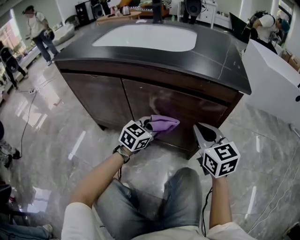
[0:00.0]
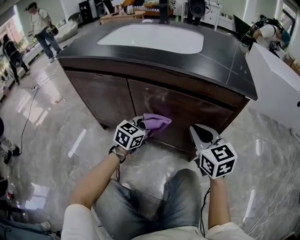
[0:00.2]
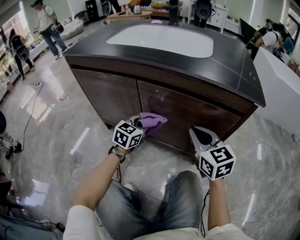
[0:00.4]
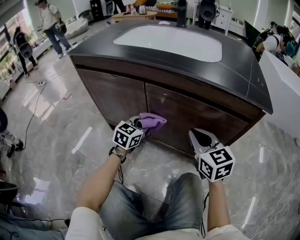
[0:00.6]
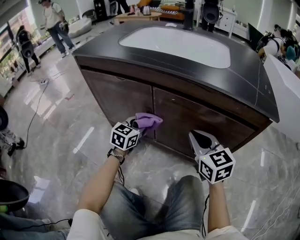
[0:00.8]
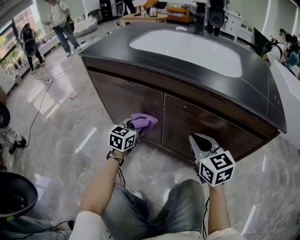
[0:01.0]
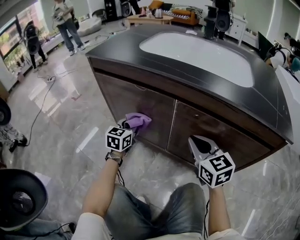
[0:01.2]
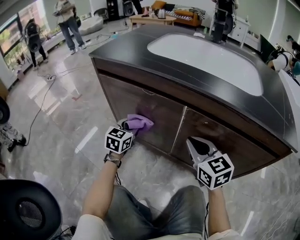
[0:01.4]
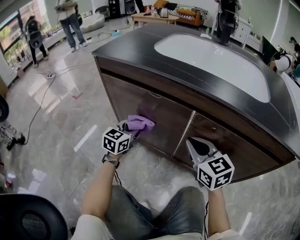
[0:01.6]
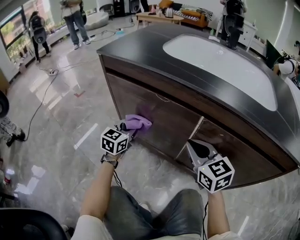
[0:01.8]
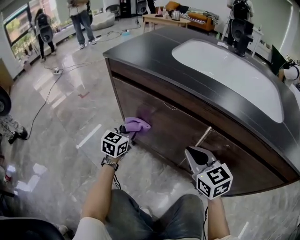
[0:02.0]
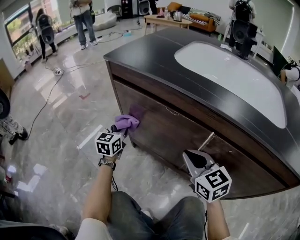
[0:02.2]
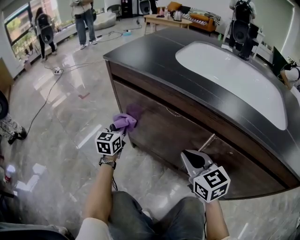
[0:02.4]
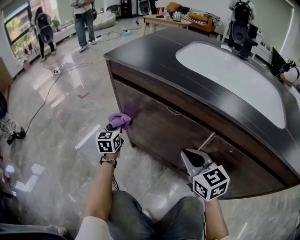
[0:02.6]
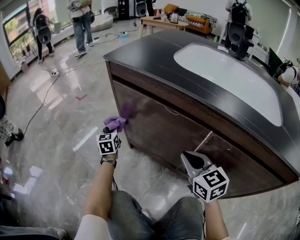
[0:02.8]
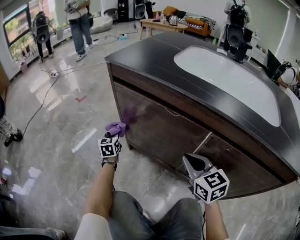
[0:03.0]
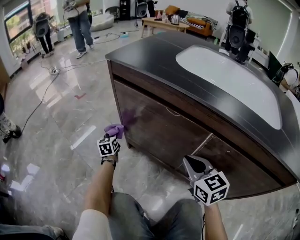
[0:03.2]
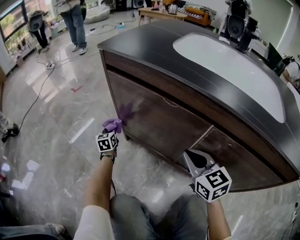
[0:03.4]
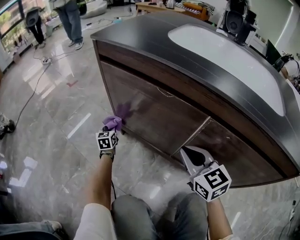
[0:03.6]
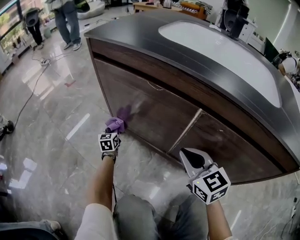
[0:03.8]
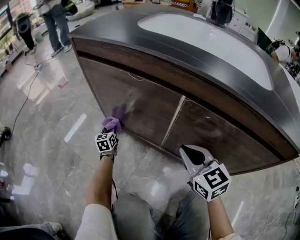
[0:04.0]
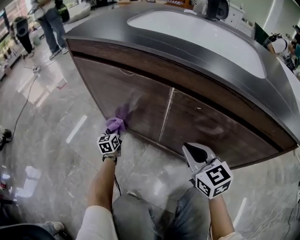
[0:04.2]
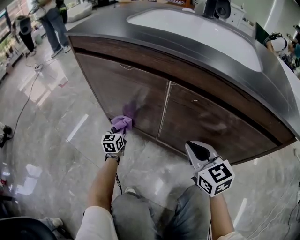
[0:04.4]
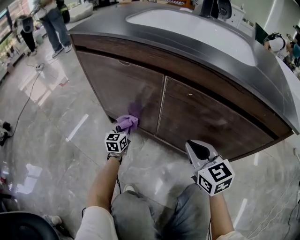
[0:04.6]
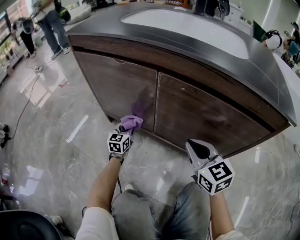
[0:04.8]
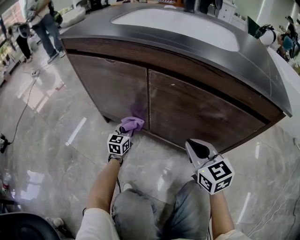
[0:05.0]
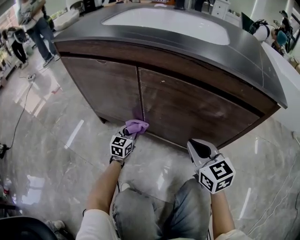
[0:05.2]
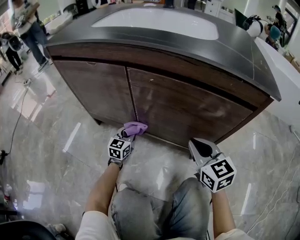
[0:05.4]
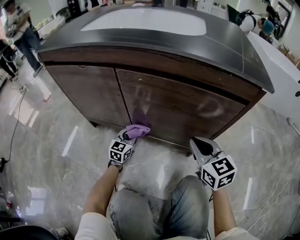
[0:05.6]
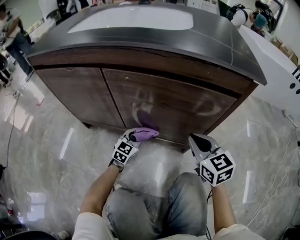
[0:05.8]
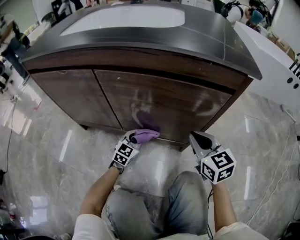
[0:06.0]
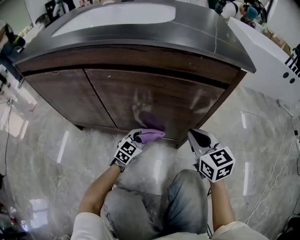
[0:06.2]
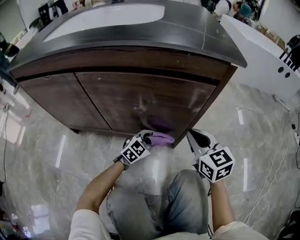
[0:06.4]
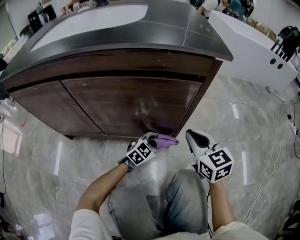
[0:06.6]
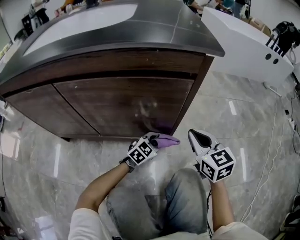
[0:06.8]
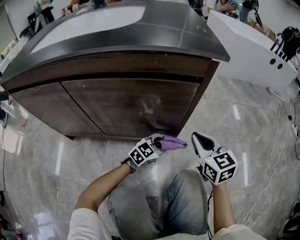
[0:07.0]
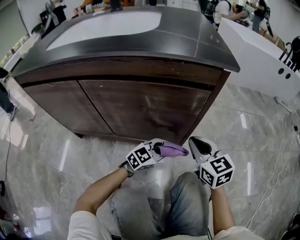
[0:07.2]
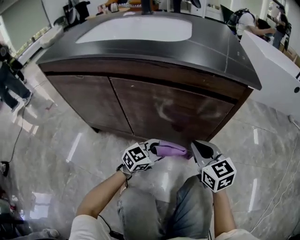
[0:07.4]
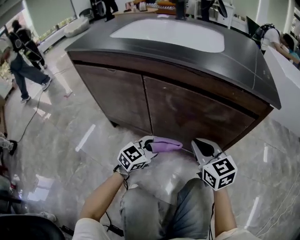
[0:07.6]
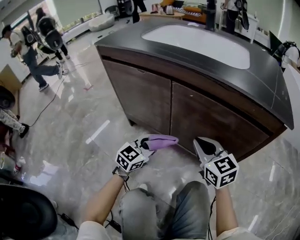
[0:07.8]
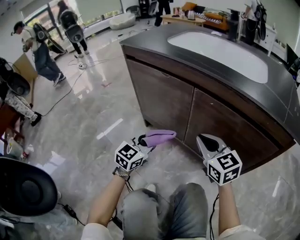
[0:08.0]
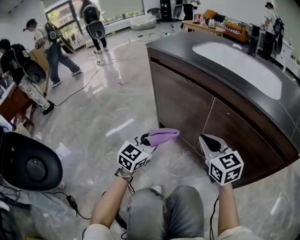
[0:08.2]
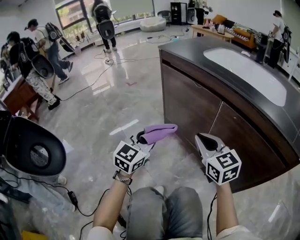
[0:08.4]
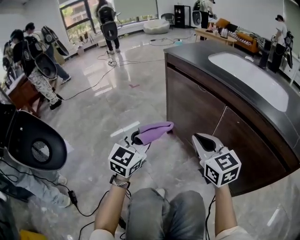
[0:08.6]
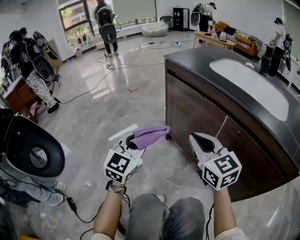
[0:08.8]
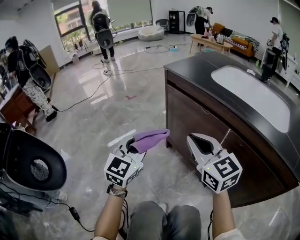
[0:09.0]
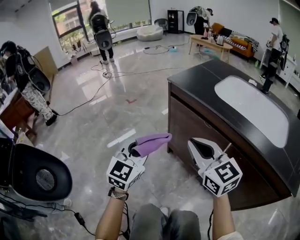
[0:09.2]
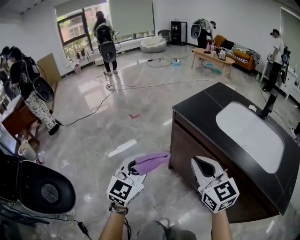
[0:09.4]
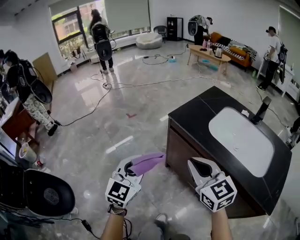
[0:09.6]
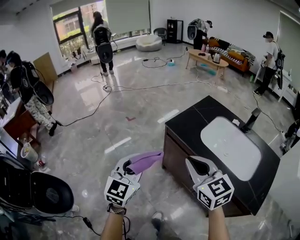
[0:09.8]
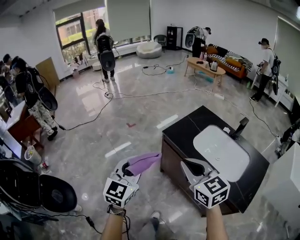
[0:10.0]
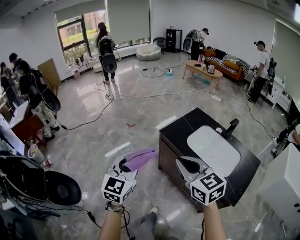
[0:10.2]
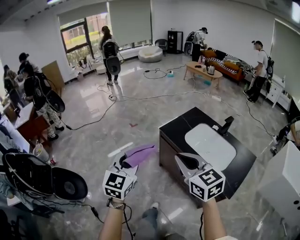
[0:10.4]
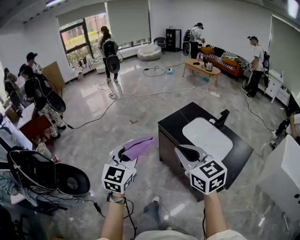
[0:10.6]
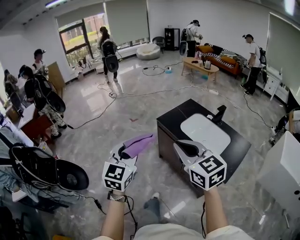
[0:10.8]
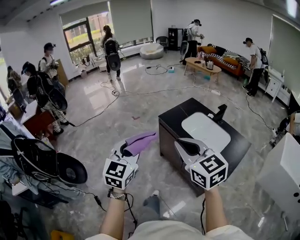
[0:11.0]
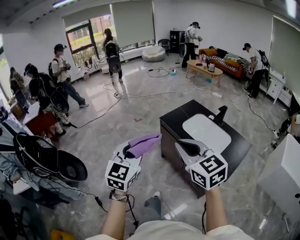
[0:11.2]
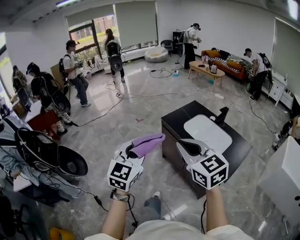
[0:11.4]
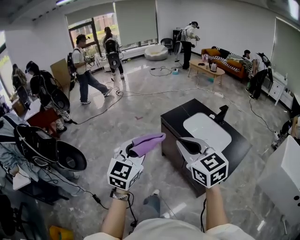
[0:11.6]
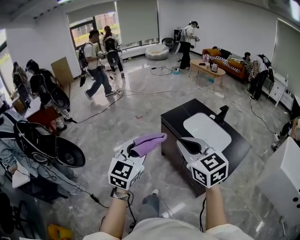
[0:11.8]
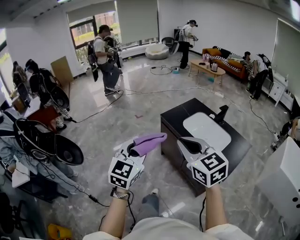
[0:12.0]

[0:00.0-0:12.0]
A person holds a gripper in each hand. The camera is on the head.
0:00.0 to 0:01.6: The right gripper moves to the left and forward, some 30 cm; the left gripper moves to the left, about 35 cm, and rotates about 30 degrees.
0:01.6 to 0:03.0: The left gripper moves to the left, forward and downward, some 25 cm, and swivels some 40 degrees; the right gripper shifts roughly 5 cm to the left.
0:03.0 to 0:04.4: The right gripper moves backward and to the right, roughly 15 cm. The left gripper is displaced to the right, backward and downward by about 25 cm.
0:04.4 to 0:06.0: The left gripper moves about 35 cm, and turns by approximately 50 degrees. Meanwhile the right gripper shifts by roughly 20 cm.
0:06.0 to 0:07.6: The right gripper changes place by roughly 10 cm. The left gripper travels upward by about 15 cm.
0:07.6 to 0:09.0: The left gripper changes place by approximately 40 cm, and swivels roughly 60 degrees; the right gripper shifts by approximately 35 cm, and turns by approximately 30 degrees.
0:09.0 to 0:10.4: Both grippers move upward, about 50 cm.
0:10.4 to 0:12.0: Both grippers travel together backward, some 15 cm.

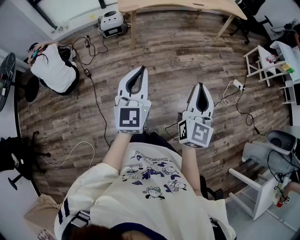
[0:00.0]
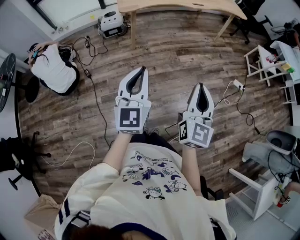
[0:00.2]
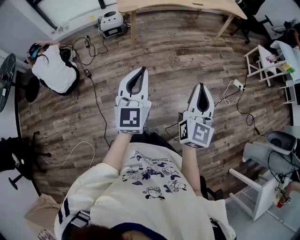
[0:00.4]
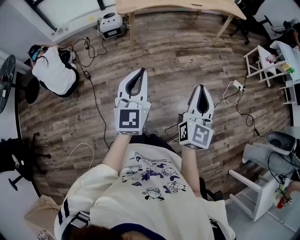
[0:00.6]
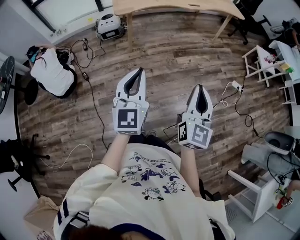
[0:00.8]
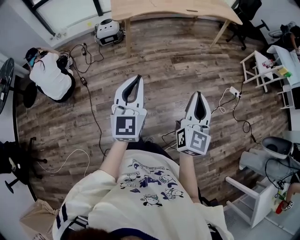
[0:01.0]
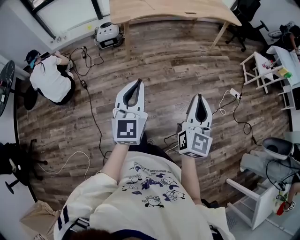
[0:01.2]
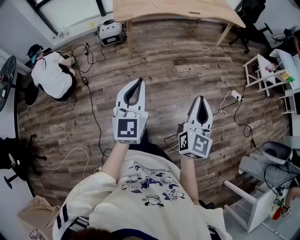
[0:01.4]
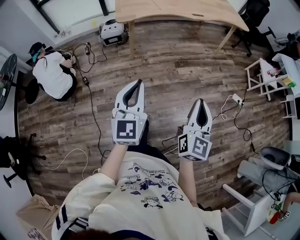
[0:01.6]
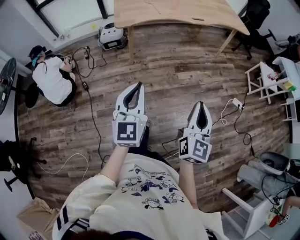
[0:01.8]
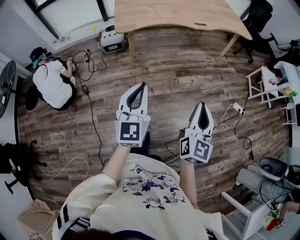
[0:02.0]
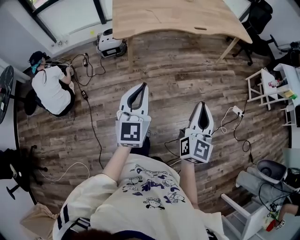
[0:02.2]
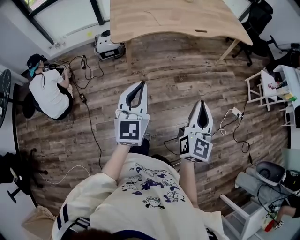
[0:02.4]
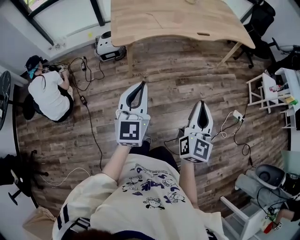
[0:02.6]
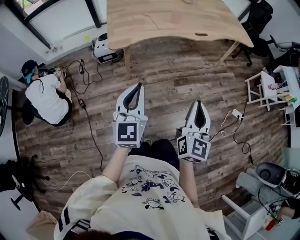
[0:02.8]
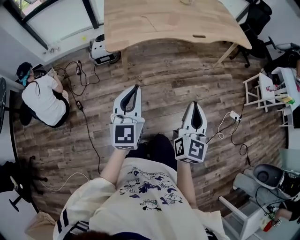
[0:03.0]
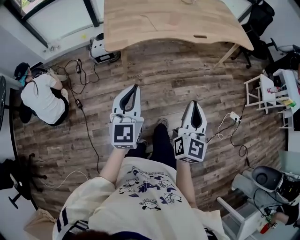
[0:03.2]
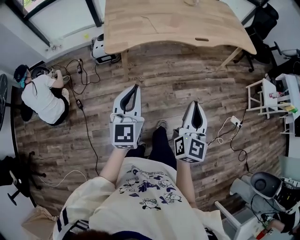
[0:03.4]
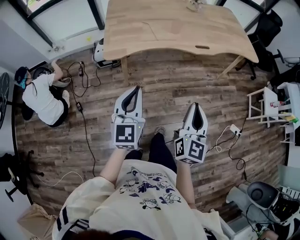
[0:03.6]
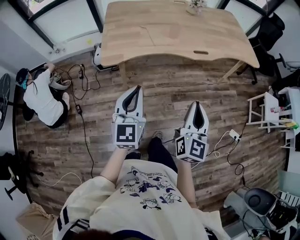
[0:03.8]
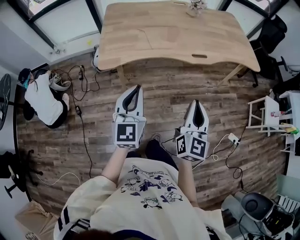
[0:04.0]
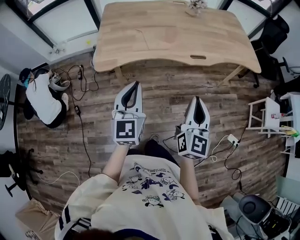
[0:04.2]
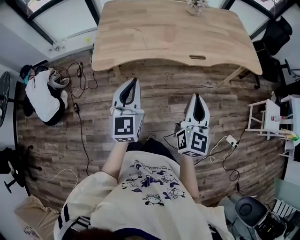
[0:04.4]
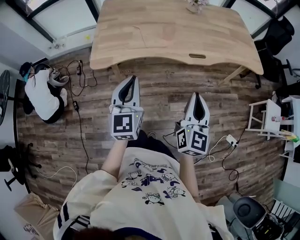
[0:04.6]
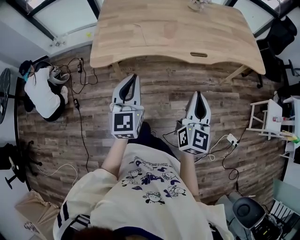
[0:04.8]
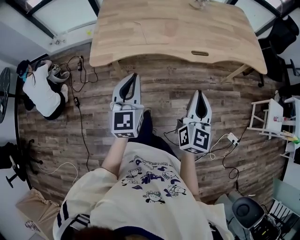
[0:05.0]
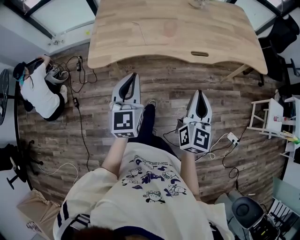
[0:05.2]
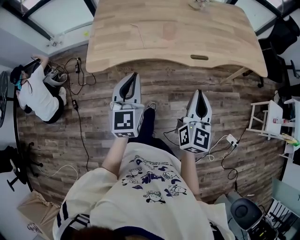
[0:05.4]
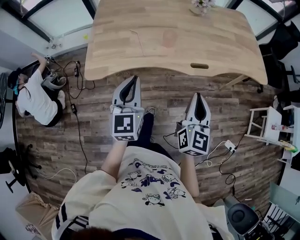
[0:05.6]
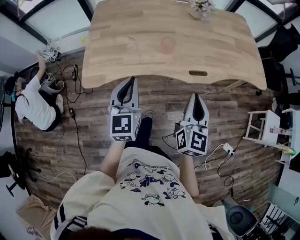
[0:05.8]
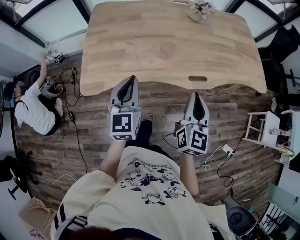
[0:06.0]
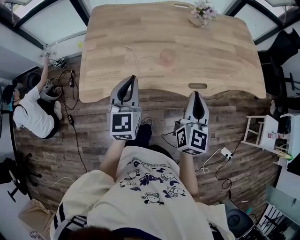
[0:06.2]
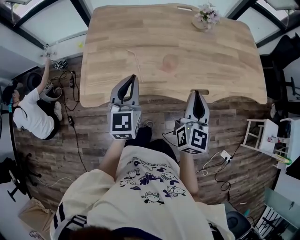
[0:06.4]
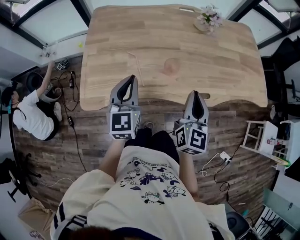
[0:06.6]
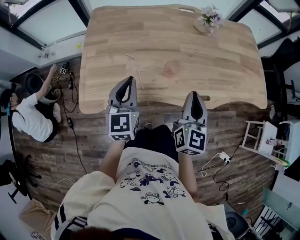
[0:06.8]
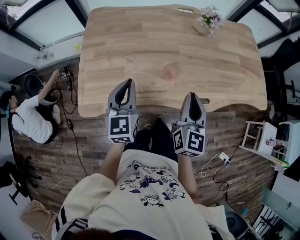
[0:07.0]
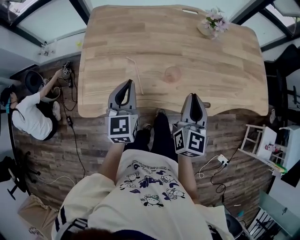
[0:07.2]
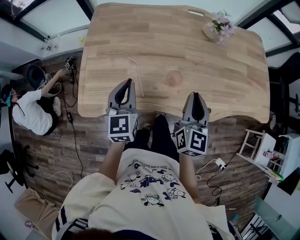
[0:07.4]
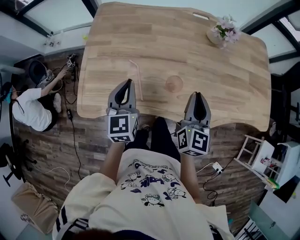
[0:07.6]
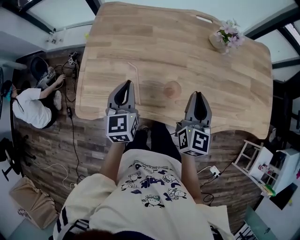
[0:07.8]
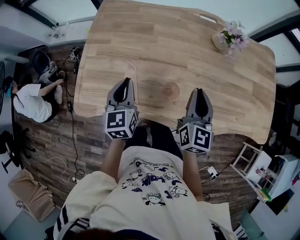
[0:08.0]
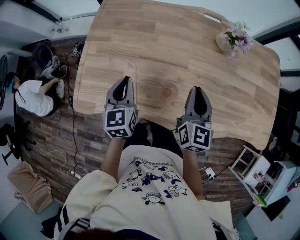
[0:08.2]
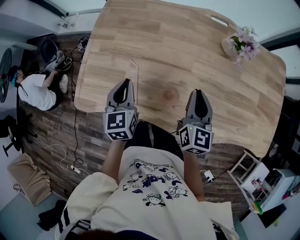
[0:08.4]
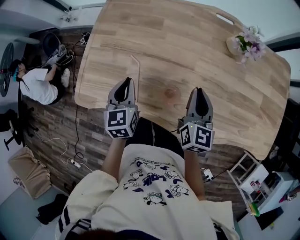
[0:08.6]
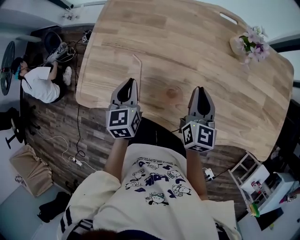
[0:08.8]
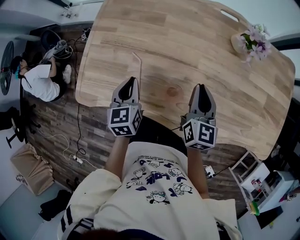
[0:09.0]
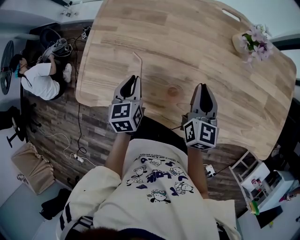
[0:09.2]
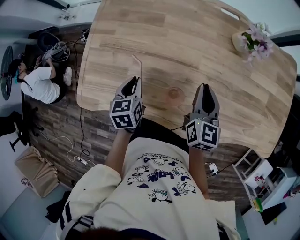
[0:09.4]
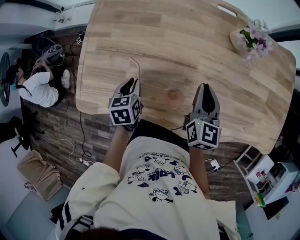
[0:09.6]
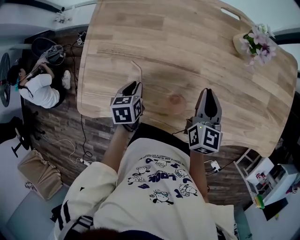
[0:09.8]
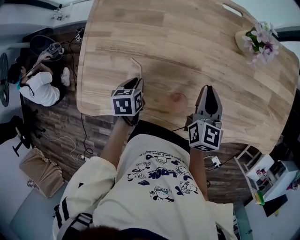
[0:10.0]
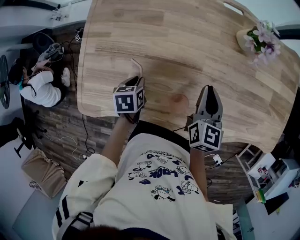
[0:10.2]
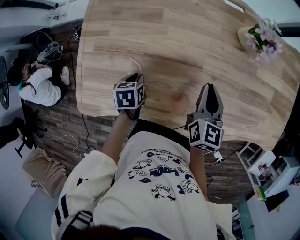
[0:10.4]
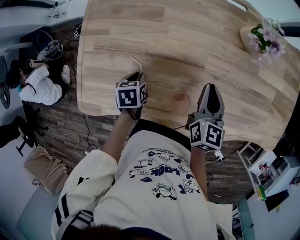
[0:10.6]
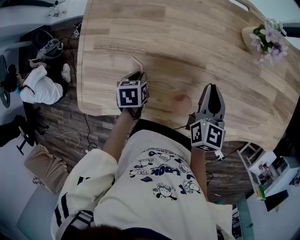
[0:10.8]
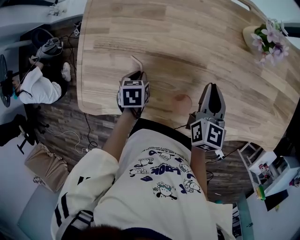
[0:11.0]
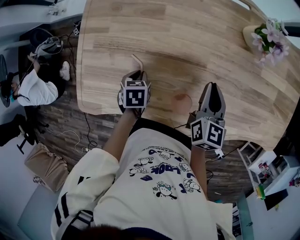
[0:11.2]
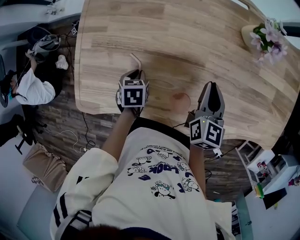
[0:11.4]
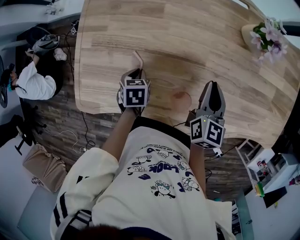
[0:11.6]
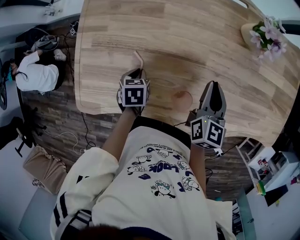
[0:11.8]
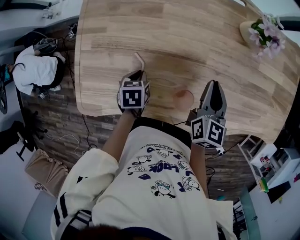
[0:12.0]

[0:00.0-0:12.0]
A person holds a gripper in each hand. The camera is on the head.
0:00.0 to 0:01.6: The right gripper moves to the right, roughly 5 cm; the left gripper moves some 5 cm.
0:01.6 to 0:03.0: Both grippers move forward, roughly 25 cm.
0:03.0 to 0:04.4: The grippers both shift forward and to the right by roughly 25 cm.
0:04.4 to 0:06.0: The grippers both shift forward by some 20 cm.
0:06.0 to 0:07.6: The two grippers go approximately 20 cm forward.
0:07.6 to 0:09.0: The left gripper moves downward, approximately 10 cm, and rotates some 20 degrees. The right gripper shifts approximately 10 cm forward and downward.
0:09.0 to 0:10.4: The left gripper travels downward by about 15 cm, and tilts its fingers roughly 30 degrees downward.
0:10.4 to 0:12.0: The grippers make only small movements.
